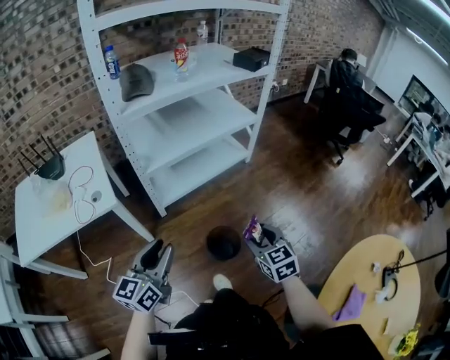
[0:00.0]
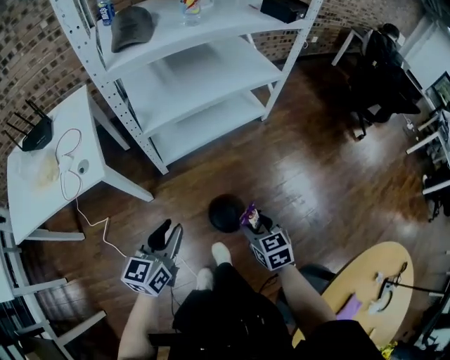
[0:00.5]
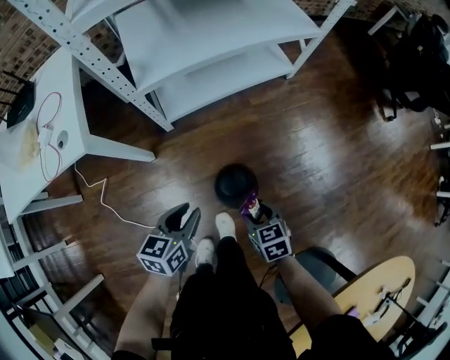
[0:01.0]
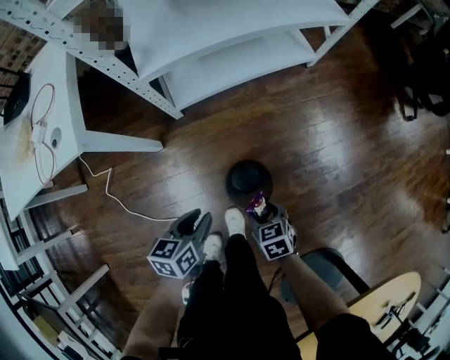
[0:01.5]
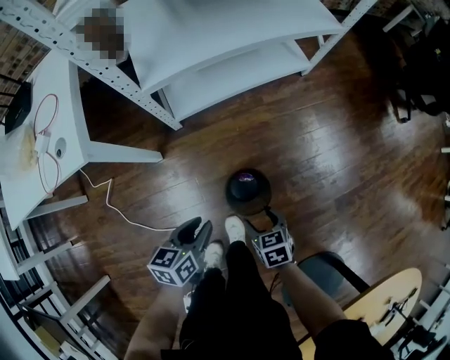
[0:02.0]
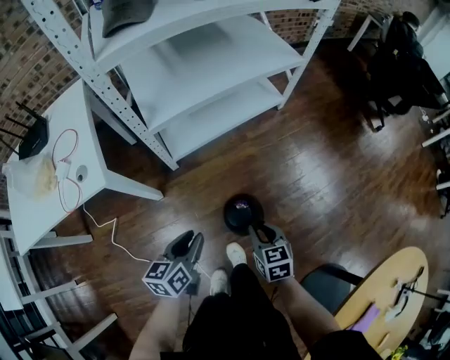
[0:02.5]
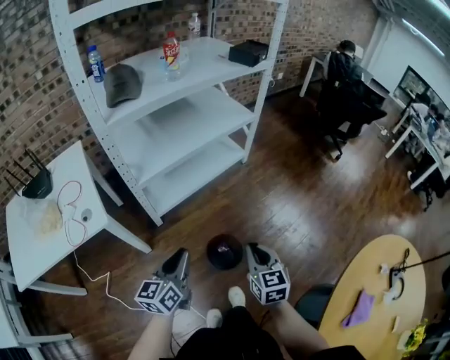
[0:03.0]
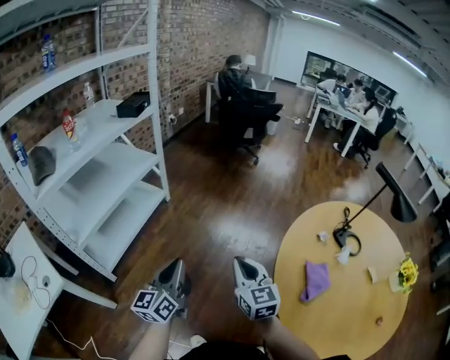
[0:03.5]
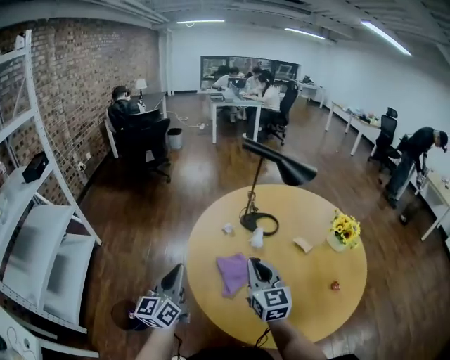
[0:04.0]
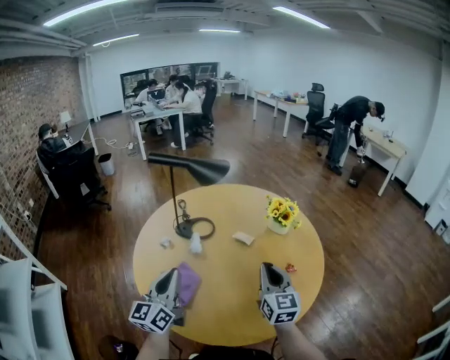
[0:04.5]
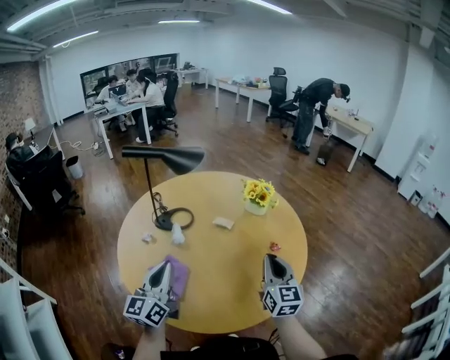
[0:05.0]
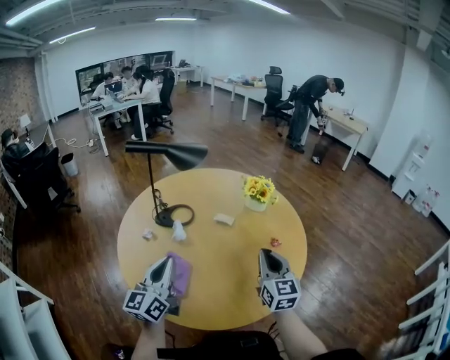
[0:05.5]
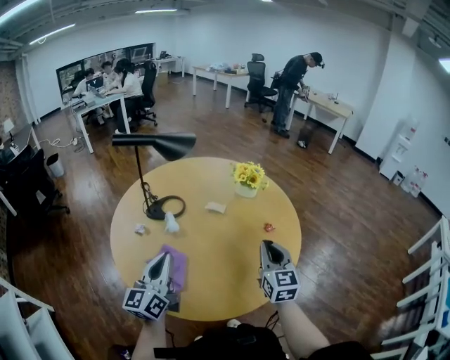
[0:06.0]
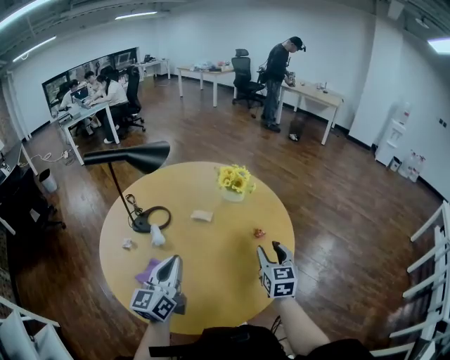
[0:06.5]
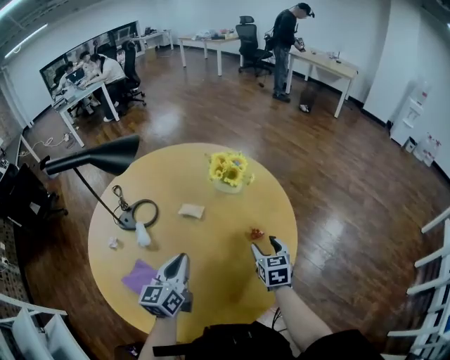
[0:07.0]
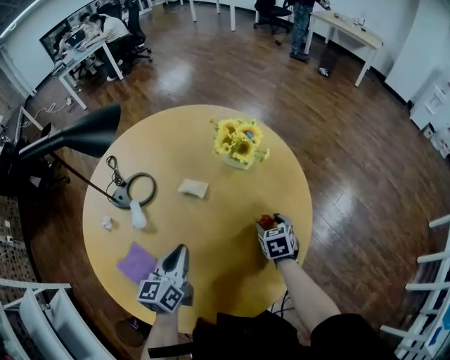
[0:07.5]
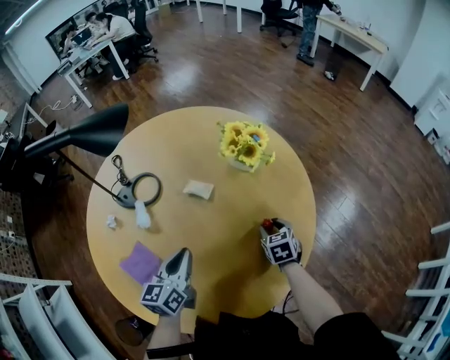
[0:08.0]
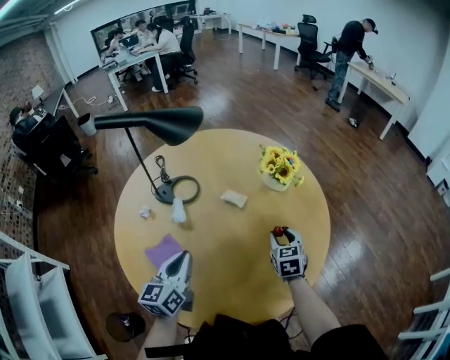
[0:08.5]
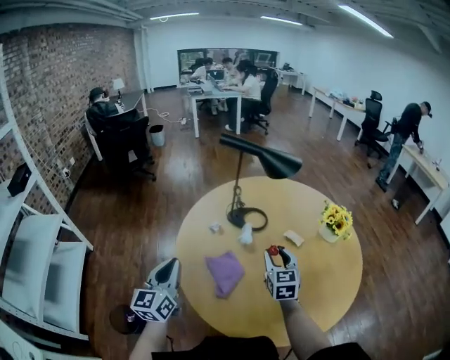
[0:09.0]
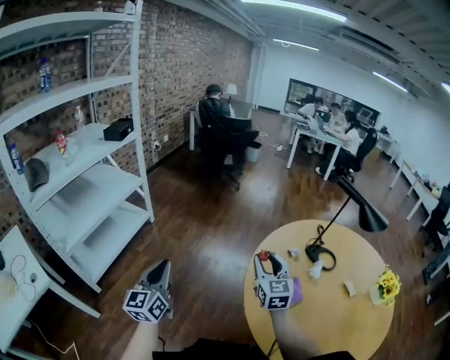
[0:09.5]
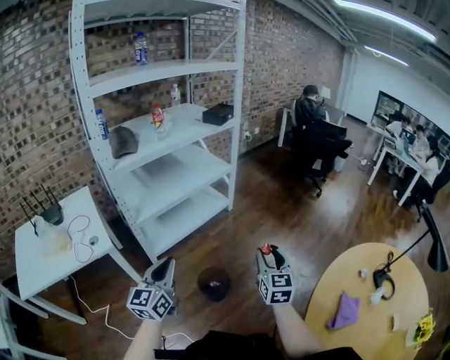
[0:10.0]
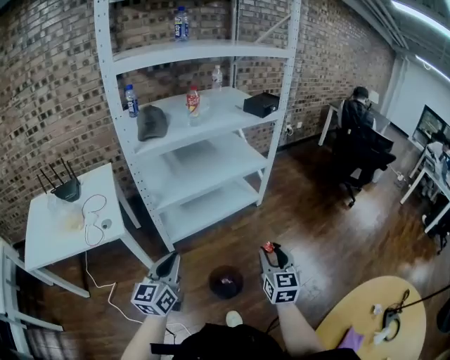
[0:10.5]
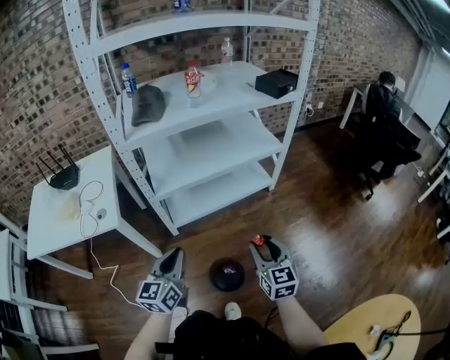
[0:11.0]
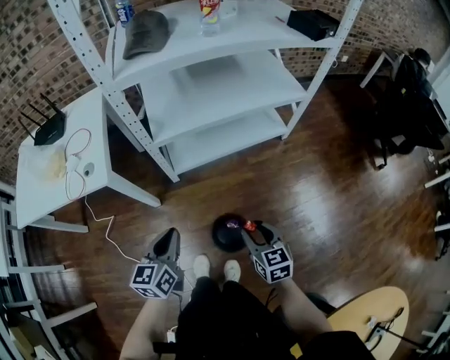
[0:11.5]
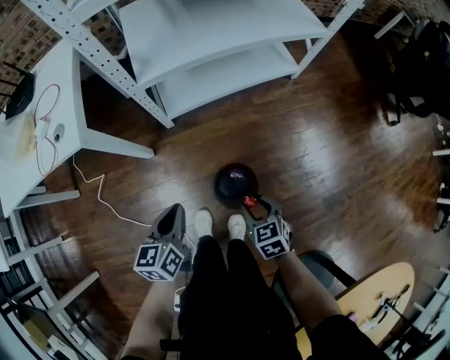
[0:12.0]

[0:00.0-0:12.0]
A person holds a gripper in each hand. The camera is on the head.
0:00.0 to 0:02.0: The two grippers go roughly 30 cm downward. The right gripper rotates approximately 30 degrees; the left gripper tips its fingers downward by some 30 degrees.
0:02.0 to 0:04.0: The pair of grippers is taken some 60 cm. The right gripper angles its fingers upward, by approximately 50 degrees, and closes. The left gripper tilts its fingers roughly 50 degrees upward.
0:04.0 to 0:06.0: The right gripper changes place by some 25 cm, and swivels roughly 50 degrees; the left gripper shifts by about 20 cm, and changes its angle by approximately 40 degrees.
0:06.0 to 0:08.0: The right gripper goes roughly 35 cm downward and forward, tilts its fingers some 40 degrees downward, and opens its fingers. Meanwhile the left gripper is displaced forward, downward and to the right by some 25 cm, and rotates some 30 degrees.
0:08.0 to 0:10.0: The pair of grippers is taken about 90 cm. The left gripper rotates about 90 degrees. The right gripper tips its fingers upward by some 40 degrees.
0:10.0 to 0:12.0: The two grippers go about 35 cm downward. The right gripper tips its fingers downward by roughly 40 degrees, while the left gripper angles its fingers downward, by some 30 degrees.

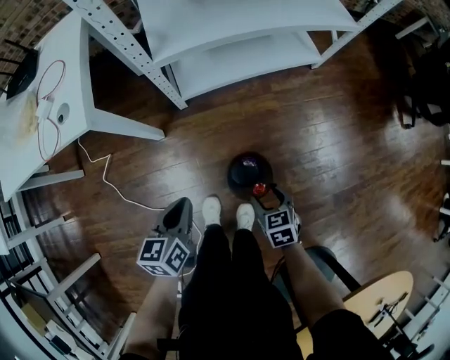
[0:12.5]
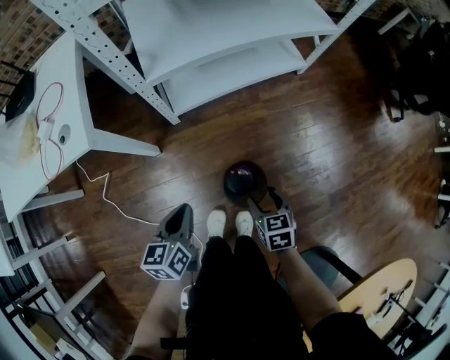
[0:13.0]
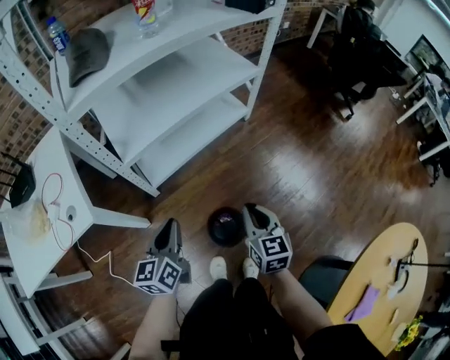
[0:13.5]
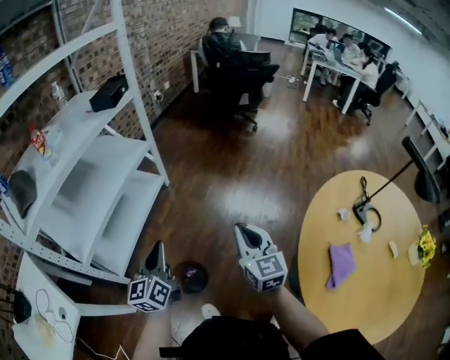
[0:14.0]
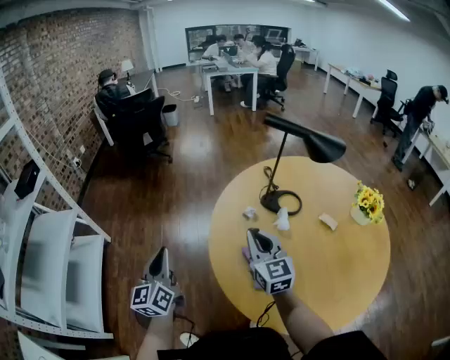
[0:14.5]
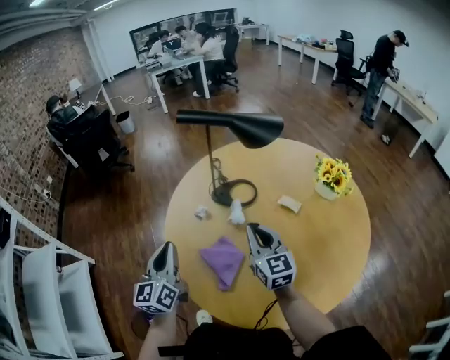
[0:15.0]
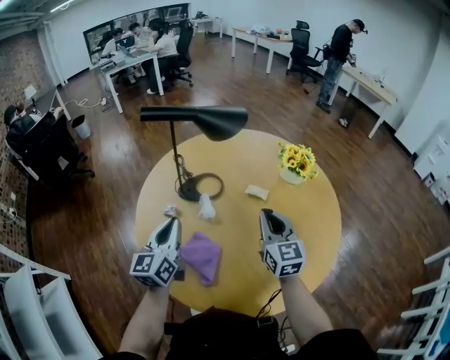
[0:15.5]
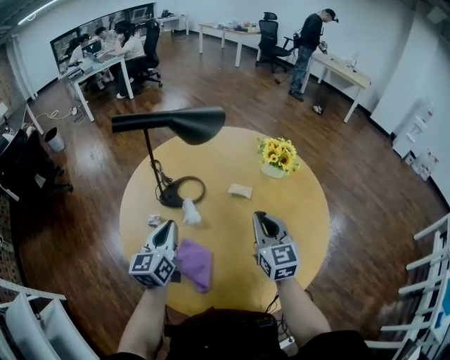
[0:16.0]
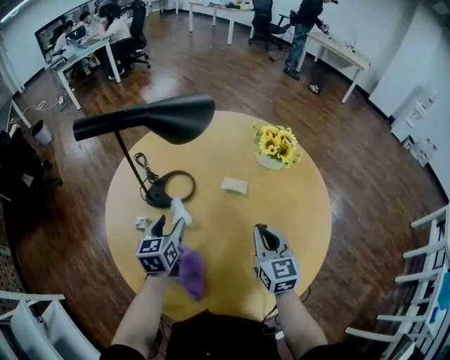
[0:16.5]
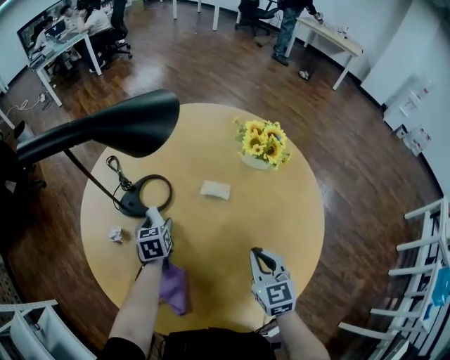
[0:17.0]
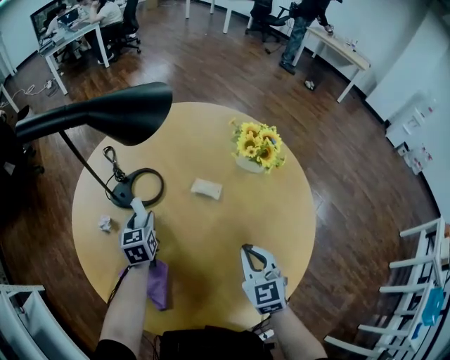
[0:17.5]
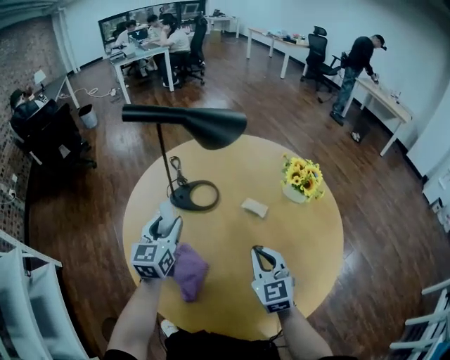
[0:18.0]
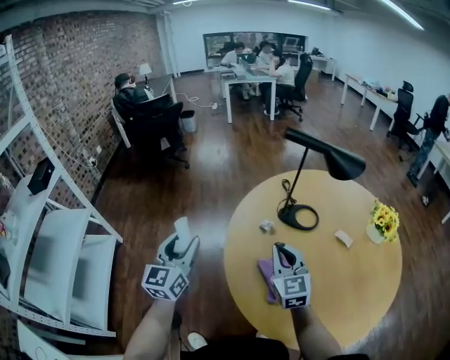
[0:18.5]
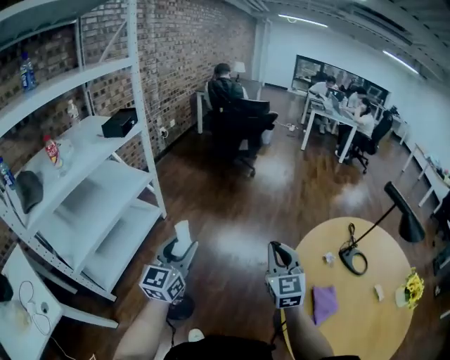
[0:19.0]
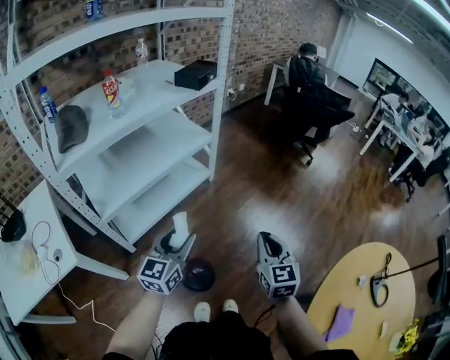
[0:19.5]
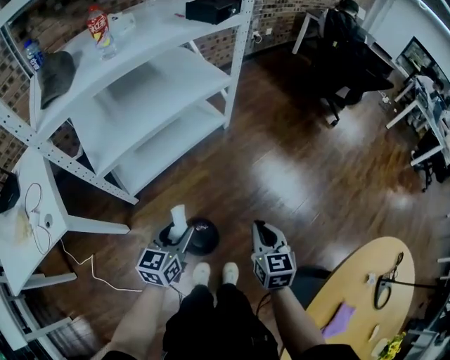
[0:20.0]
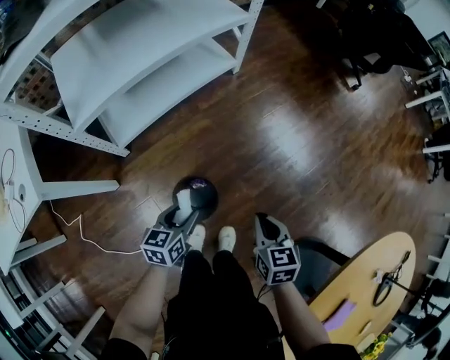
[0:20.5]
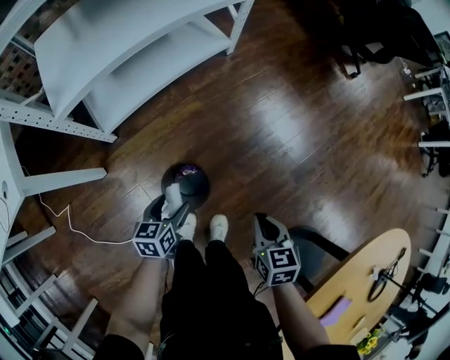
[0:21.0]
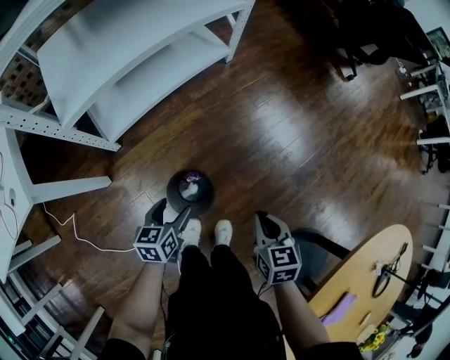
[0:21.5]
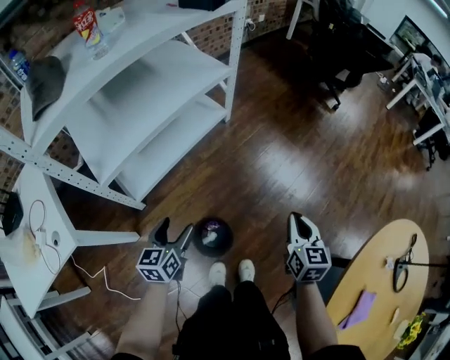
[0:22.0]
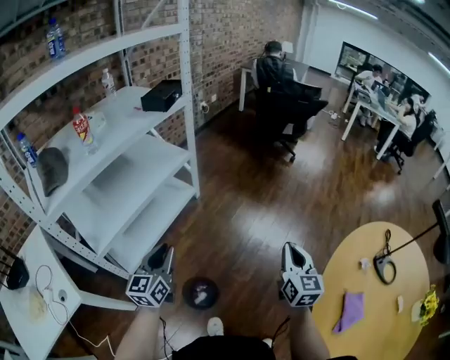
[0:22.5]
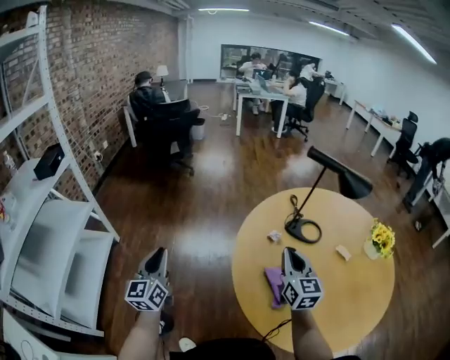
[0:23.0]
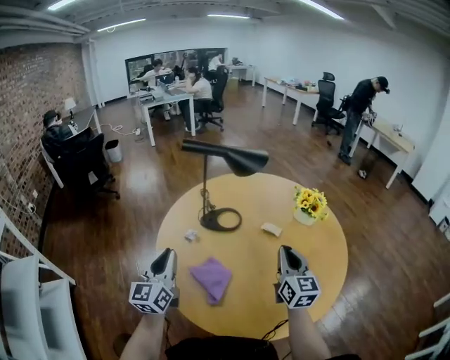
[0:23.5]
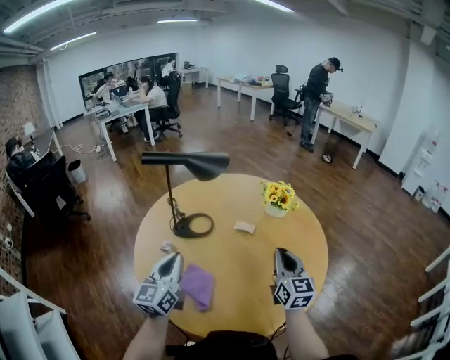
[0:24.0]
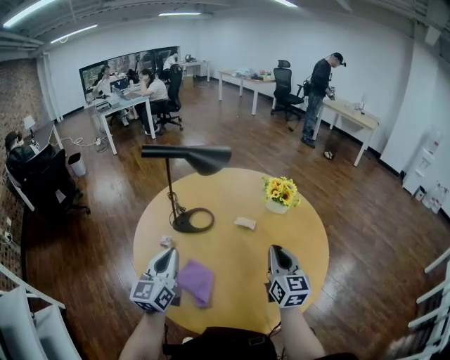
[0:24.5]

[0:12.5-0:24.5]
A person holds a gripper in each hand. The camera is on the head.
0:12.5 to 0:14.5: The pair of grippers is taken roughly 60 cm. The right gripper tips its fingers upward by roughly 50 degrees, and closes its fingers, while the left gripper tips its fingers upward by roughly 40 degrees.
0:14.5 to 0:16.5: The right gripper shifts by roughly 35 cm, and rotates roughly 40 degrees; the left gripper ends up some 50 cm from where it was, changes its angle by roughly 50 degrees, and opens.
0:16.5 to 0:18.5: The left gripper shifts by about 40 cm, and changes its angle by approximately 40 degrees, while the right gripper ends up roughly 30 cm from where it was, and changes its angle by roughly 40 degrees.
0:18.5 to 0:20.5: The pair of grippers is taken approximately 50 cm. The left gripper points its fingers about 40 degrees further downward. Meanwhile the right gripper angles its fingers downward, by approximately 40 degrees.
0:20.5 to 0:22.5: The left gripper goes roughly 30 cm upward, turns by some 30 degrees, and opens and closes again; the right gripper shifts about 30 cm upward and to the right, and angles its fingers upward, by approximately 30 degrees.
0:22.5 to 0:24.5: The pair of grippers is taken about 70 cm. The right gripper changes its angle by about 70 degrees. Meanwhile the left gripper swivels about 70 degrees.

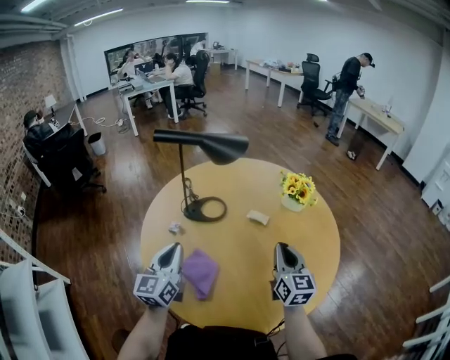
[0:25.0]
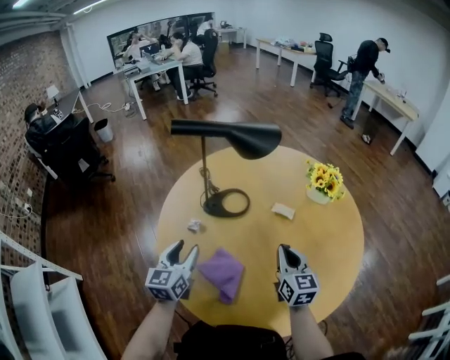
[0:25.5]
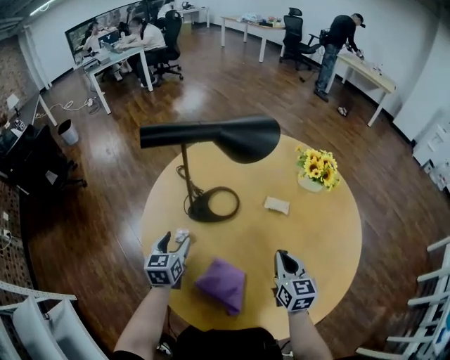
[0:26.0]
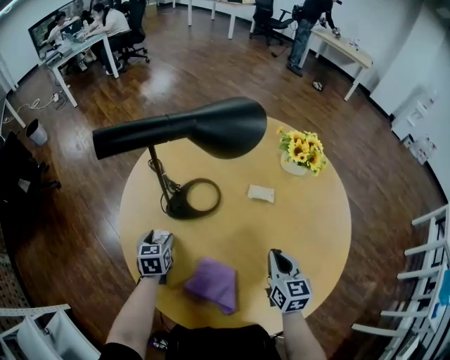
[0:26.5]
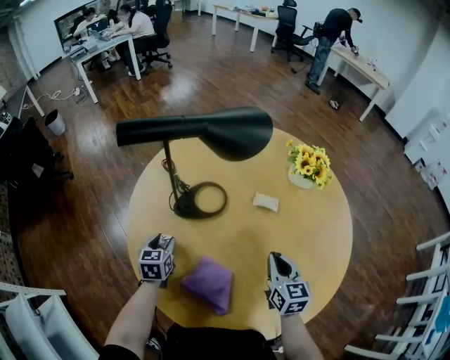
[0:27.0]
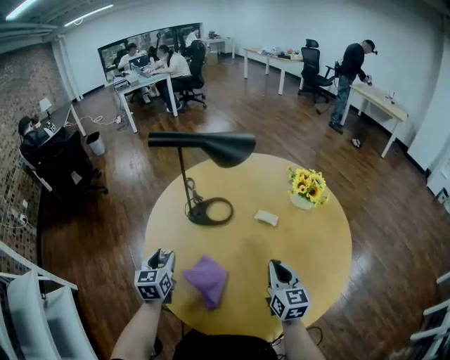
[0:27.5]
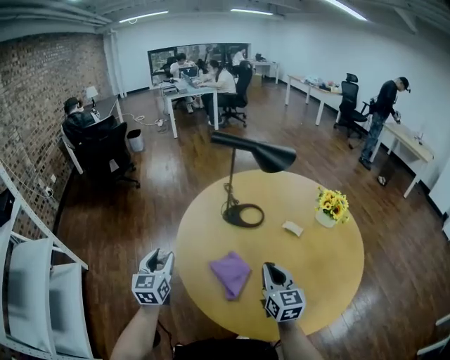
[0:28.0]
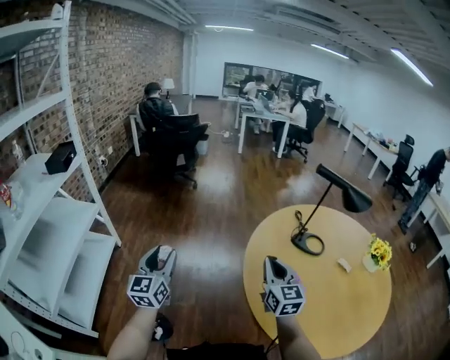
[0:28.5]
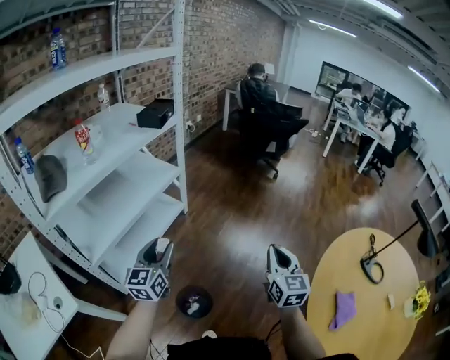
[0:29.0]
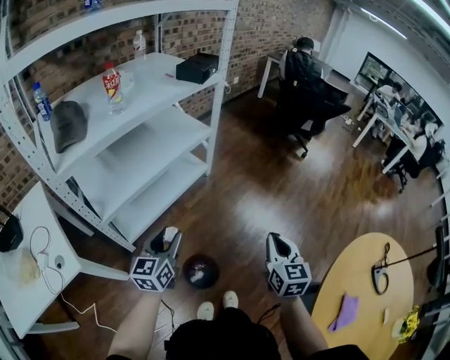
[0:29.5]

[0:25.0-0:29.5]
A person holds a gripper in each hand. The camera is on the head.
0:25.0 to 0:27.0: The left gripper goes approximately 30 cm downward, forward and to the left, tilts its fingers approximately 40 degrees downward, and opens its fingers, while the right gripper is displaced downward and to the left by about 15 cm, and swivels some 20 degrees.
0:27.0 to 0:29.5: The pair of grippers is taken roughly 80 cm. The right gripper changes its angle by approximately 80 degrees; the left gripper turns by roughly 80 degrees.
